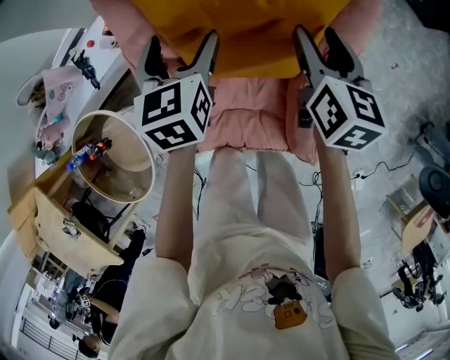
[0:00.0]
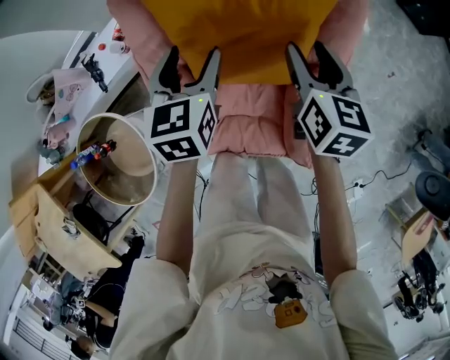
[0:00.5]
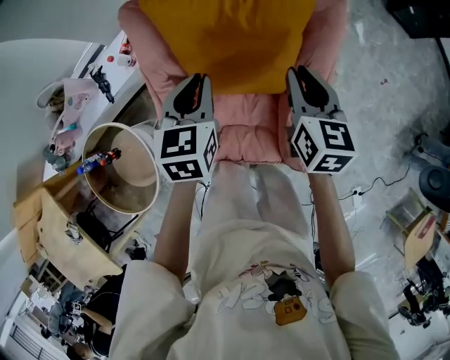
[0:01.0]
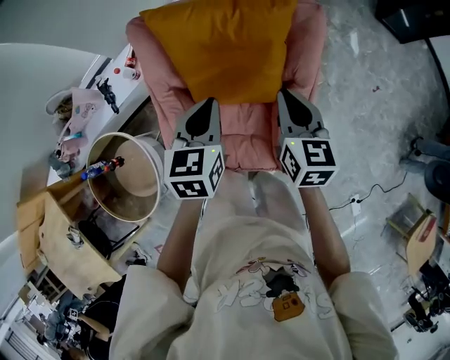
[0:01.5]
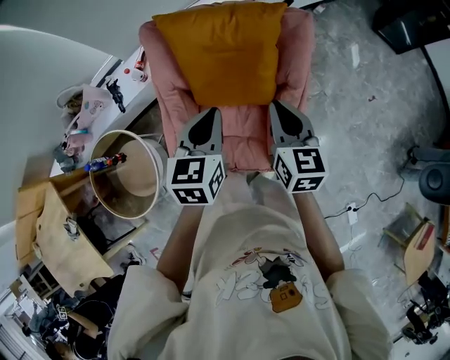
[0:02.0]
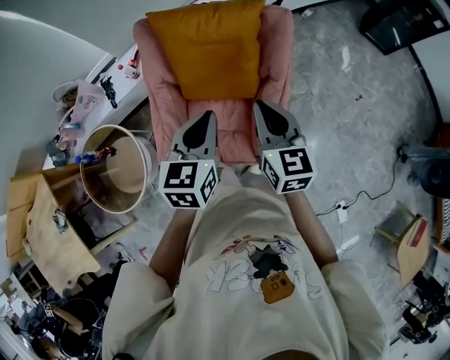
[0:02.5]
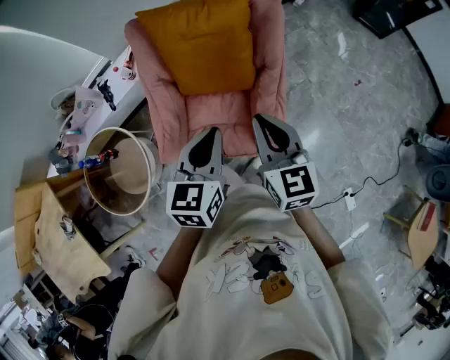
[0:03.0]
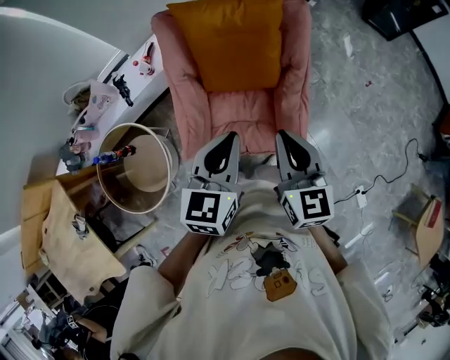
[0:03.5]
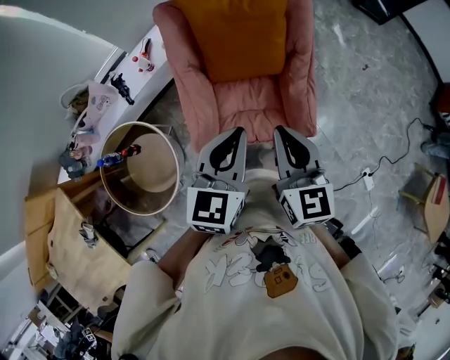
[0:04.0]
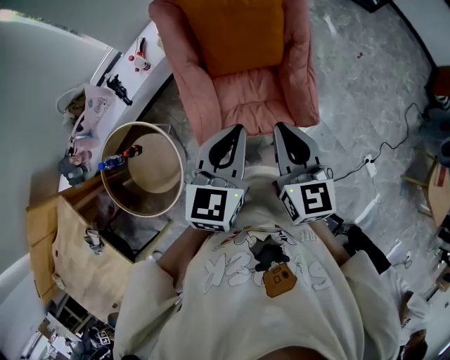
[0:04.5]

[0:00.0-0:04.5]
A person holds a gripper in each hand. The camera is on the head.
0.0 to 2.0 s: The right gripper heads backward and upward, covering approximately 25 cm, and closes its fingers; the left gripper heads backward, upward and to the right, covering some 30 cm, and closes up.
2.0 to 4.5 s: The grippers both shift backward and to the left by some 25 cm. The left gripper changes its angle by approximately 20 degrees.

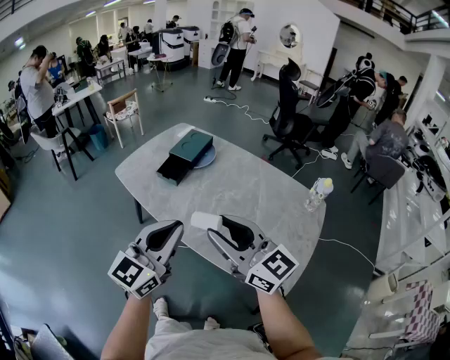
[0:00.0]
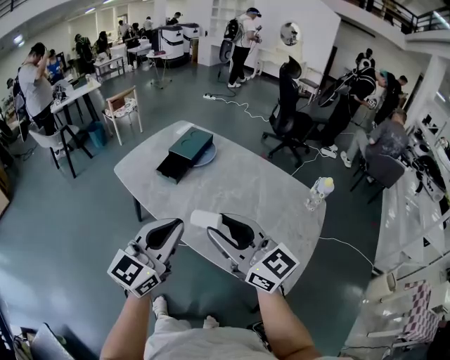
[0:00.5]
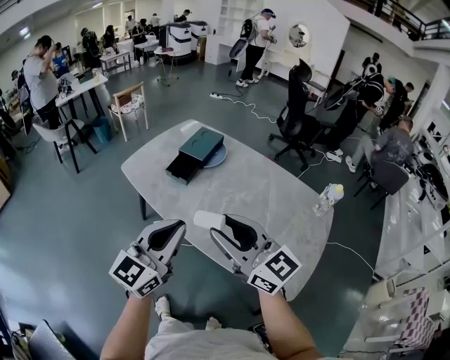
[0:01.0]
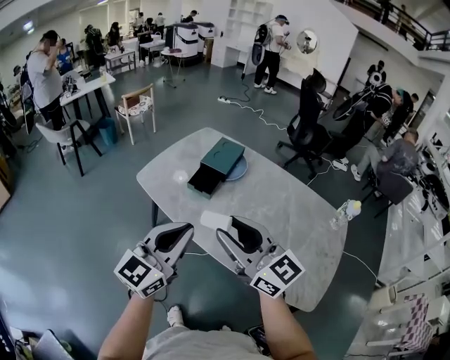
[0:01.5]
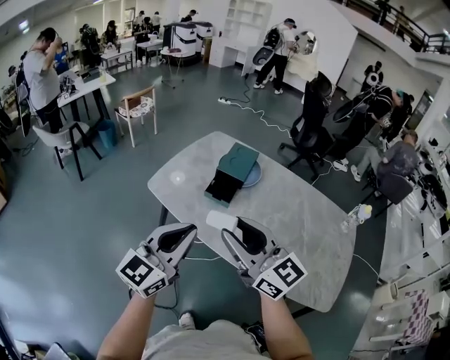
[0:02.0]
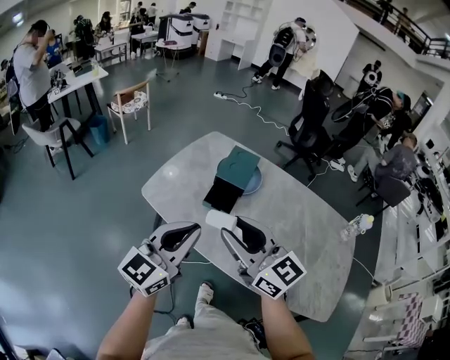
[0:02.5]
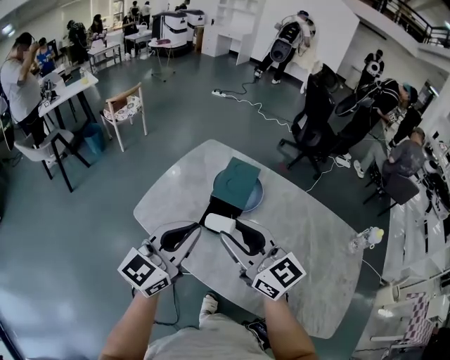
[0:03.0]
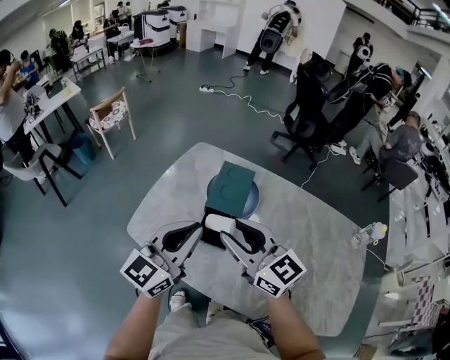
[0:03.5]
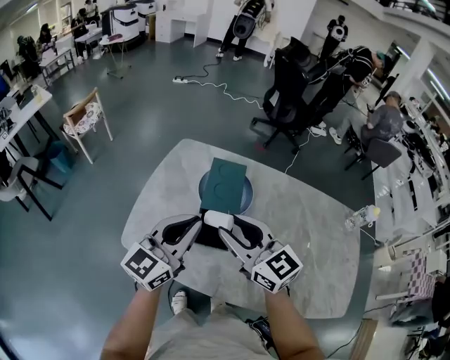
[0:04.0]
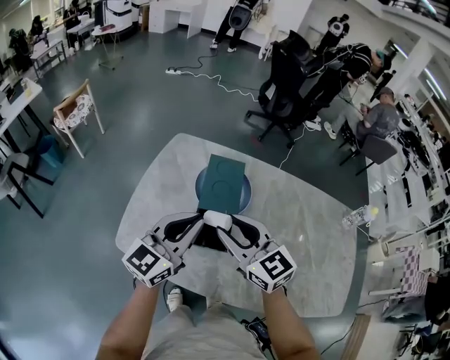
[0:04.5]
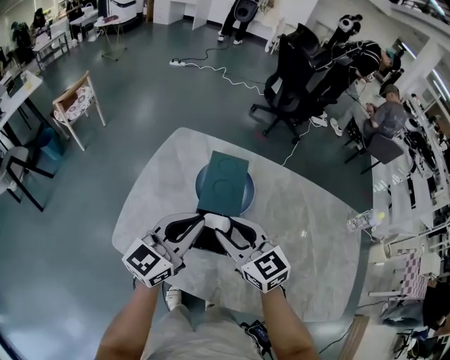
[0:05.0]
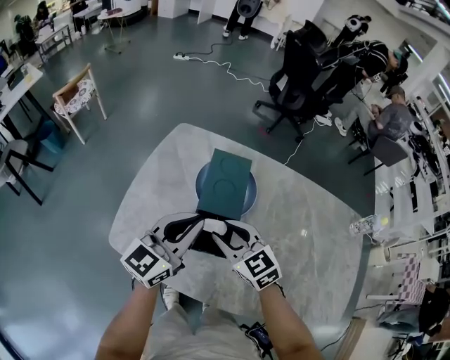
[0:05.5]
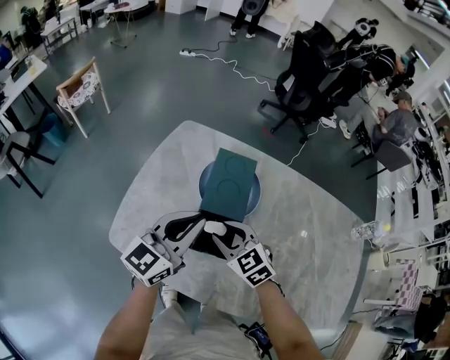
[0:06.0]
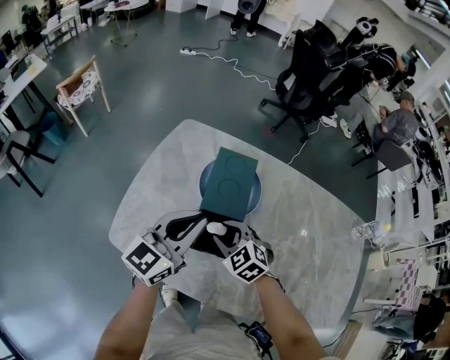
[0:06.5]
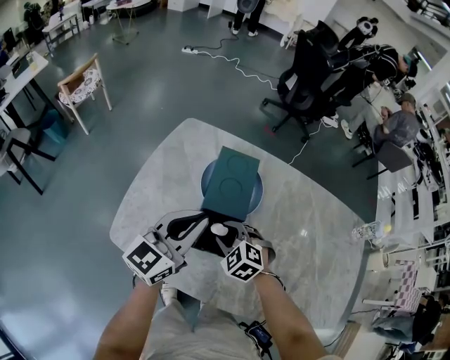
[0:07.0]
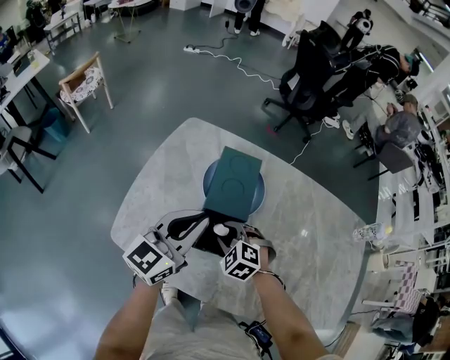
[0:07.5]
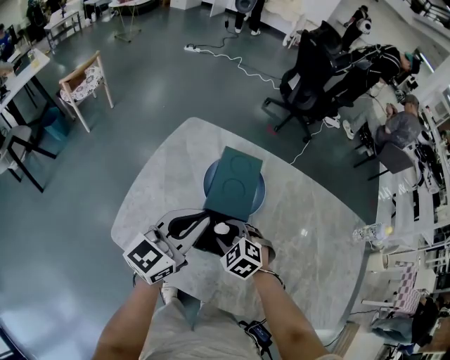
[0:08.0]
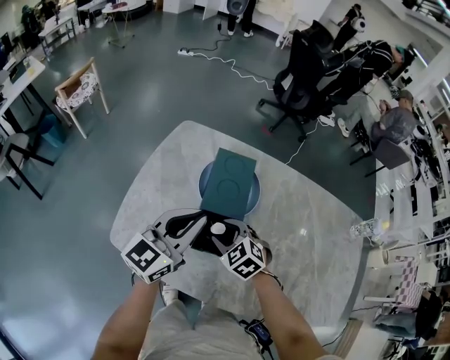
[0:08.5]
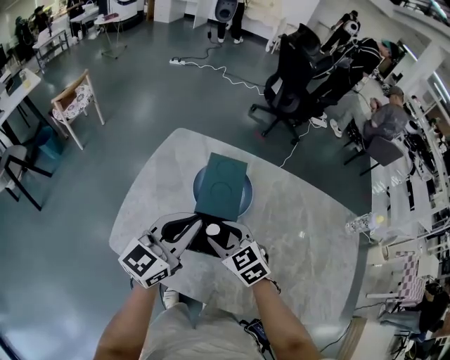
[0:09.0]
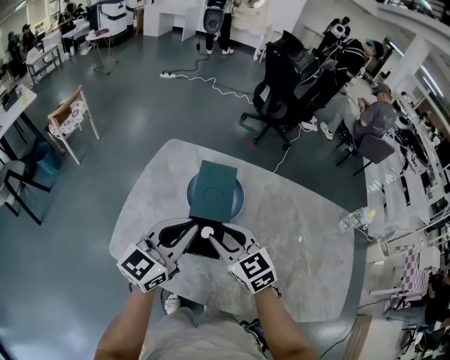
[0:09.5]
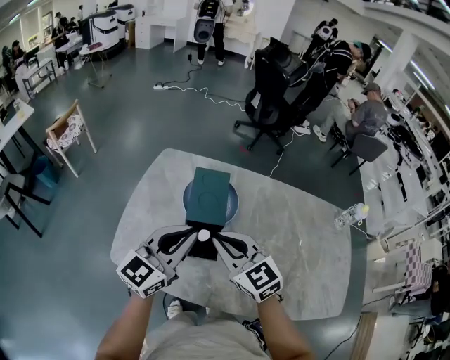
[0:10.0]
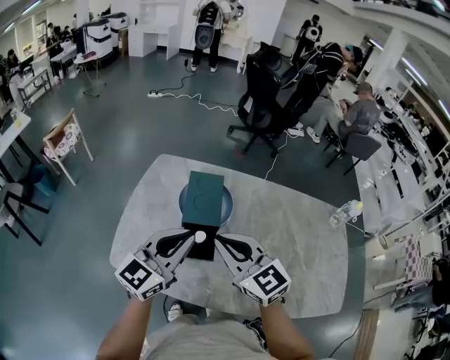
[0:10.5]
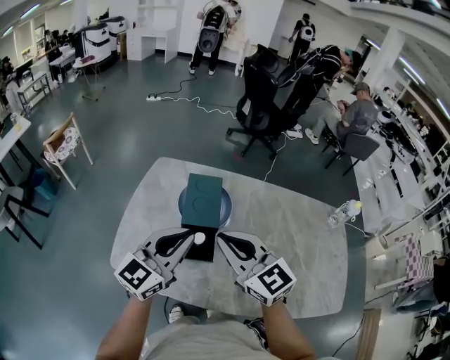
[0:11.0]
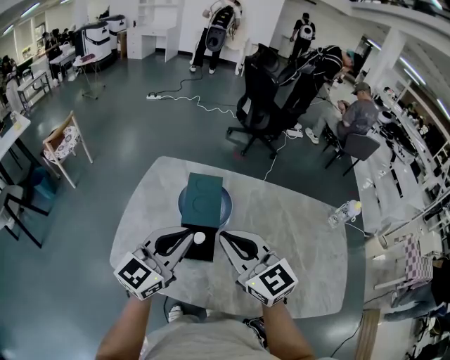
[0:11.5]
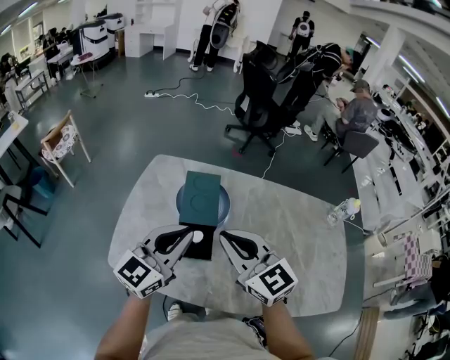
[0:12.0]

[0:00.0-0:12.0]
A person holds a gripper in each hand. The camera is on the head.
0.0 to 2.0 s: The two grippers go approximately 25 cm to the left and forward.
2.0 to 4.0 s: The two grippers go roughly 30 cm forward. The right gripper rotates some 20 degrees.
4.0 to 6.0 s: The right gripper travels downward by some 20 cm, and tilts its fingers approximately 30 degrees downward; the left gripper is displaced downward and forward by approximately 10 cm.
6.0 to 8.0 s: The right gripper shifts approximately 10 cm downward, and rotates roughly 30 degrees.
8.0 to 10.0 s: The right gripper heads upward, covering about 25 cm, angles its fingers upward, by roughly 40 degrees, and closes up. Meanwhile the left gripper travels upward and backward by approximately 10 cm.
10.0 to 12.0 s: The right gripper heads upward, covering roughly 5 cm.

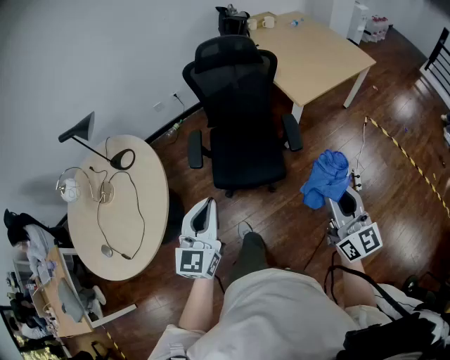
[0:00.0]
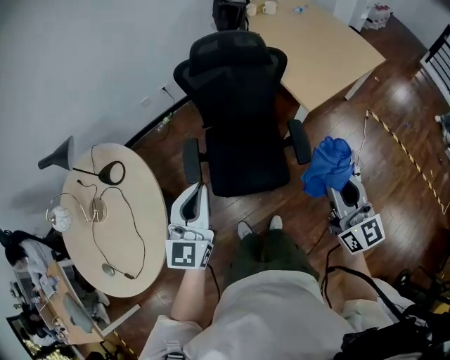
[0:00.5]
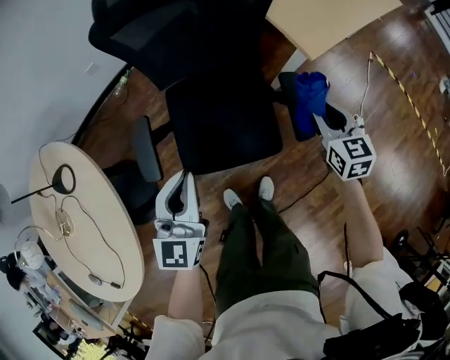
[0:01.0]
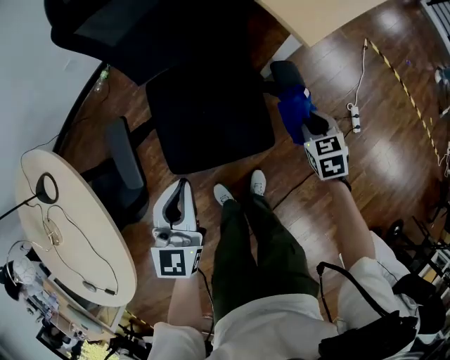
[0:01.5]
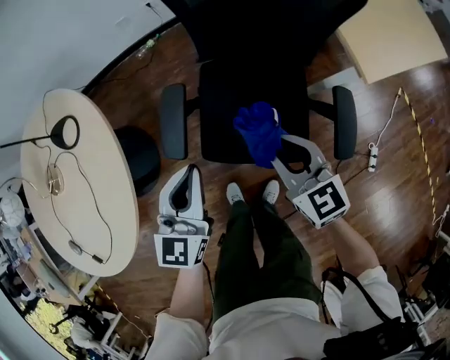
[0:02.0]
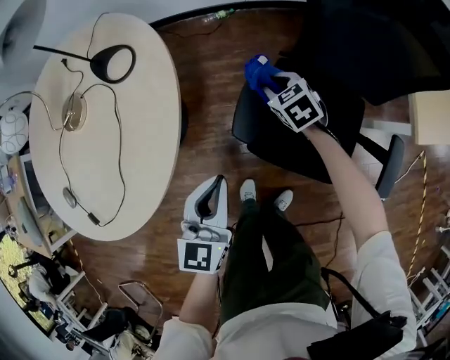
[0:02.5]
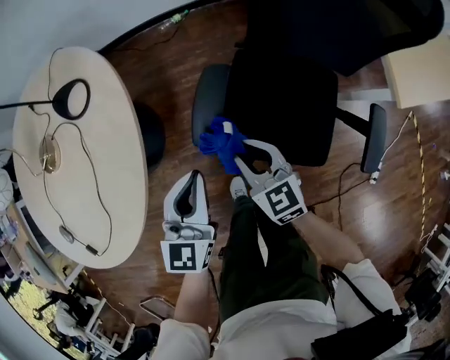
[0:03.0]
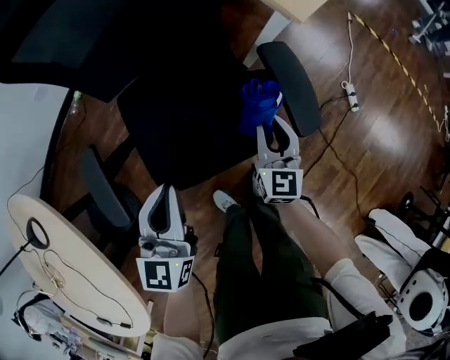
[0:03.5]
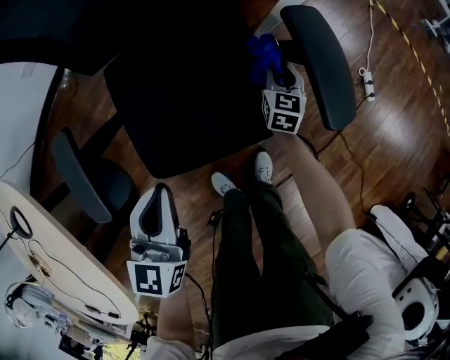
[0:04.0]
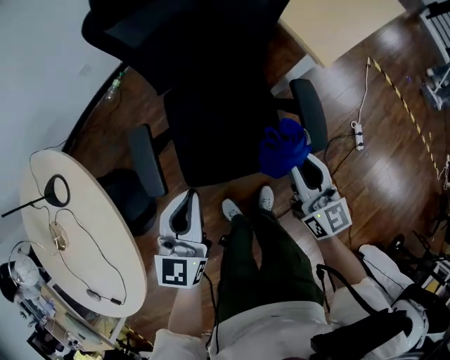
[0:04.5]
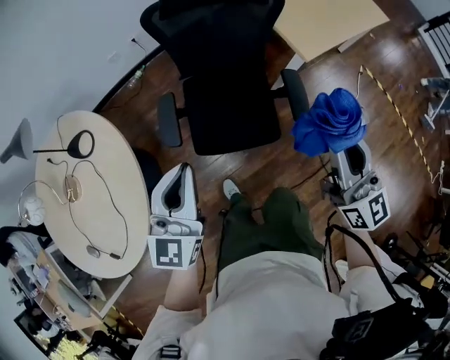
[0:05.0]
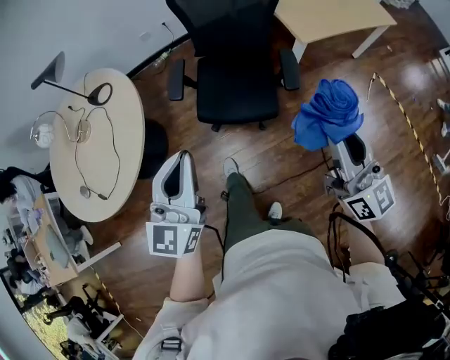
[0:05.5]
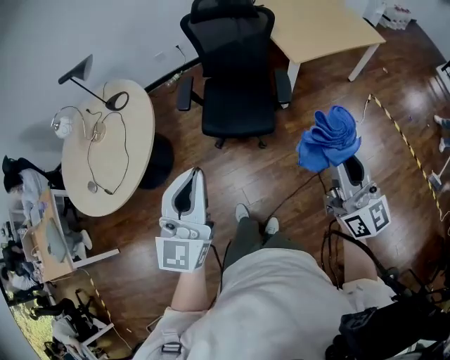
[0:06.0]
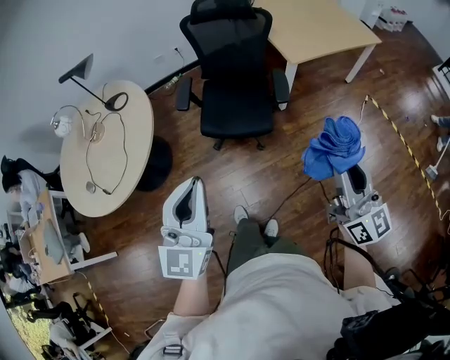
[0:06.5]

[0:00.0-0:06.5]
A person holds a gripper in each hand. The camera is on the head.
0.0 to 2.0 s: The left gripper shifts by some 35 cm. Meanwhile the right gripper moves approximately 50 cm, and swivels about 40 degrees.
2.0 to 4.5 s: The right gripper moves up and down over some 35 cm, changing direction 3 times, and rotates approximately 40 degrees, while the left gripper moves some 15 cm downward and comes back.
4.5 to 6.5 s: Both grippers are carried backward, approximately 40 cm. The grippers both shift upward by approximately 35 cm. The right gripper rotates about 20 degrees, while the left gripper rotates some 30 degrees.

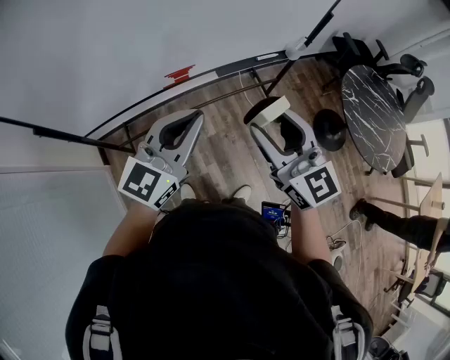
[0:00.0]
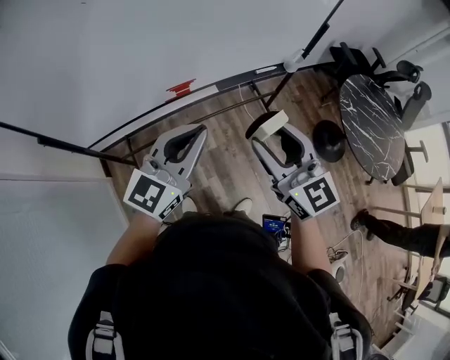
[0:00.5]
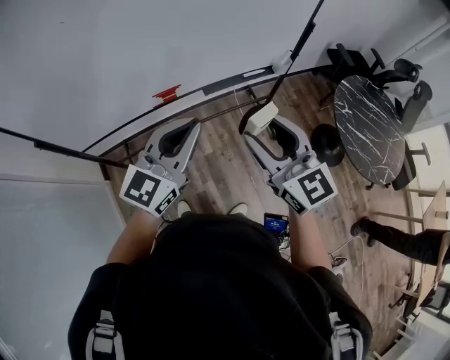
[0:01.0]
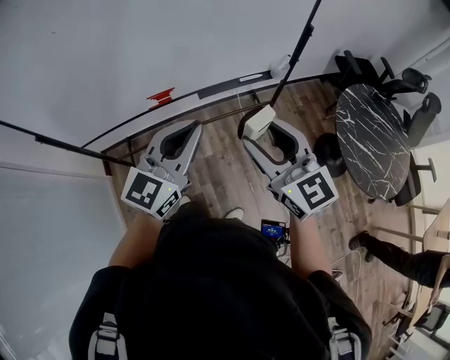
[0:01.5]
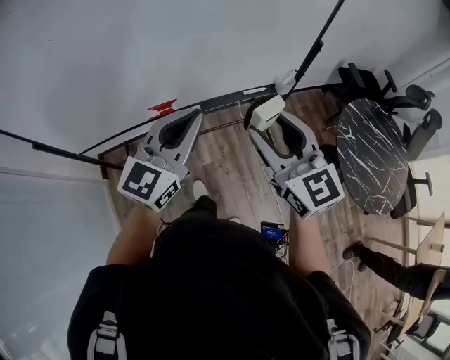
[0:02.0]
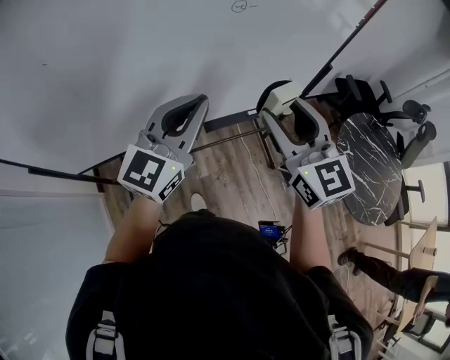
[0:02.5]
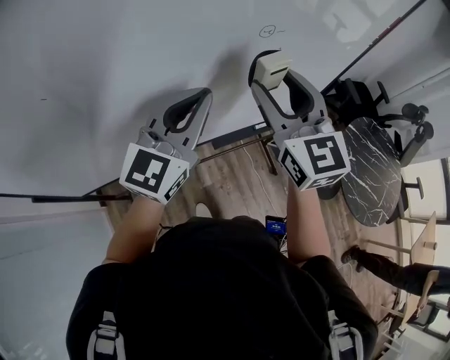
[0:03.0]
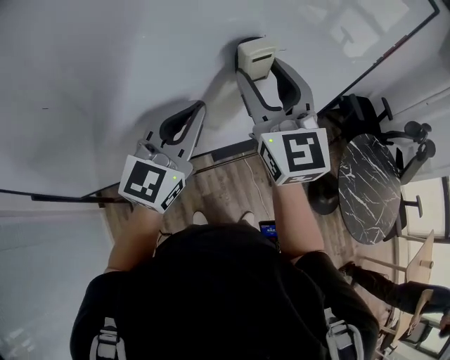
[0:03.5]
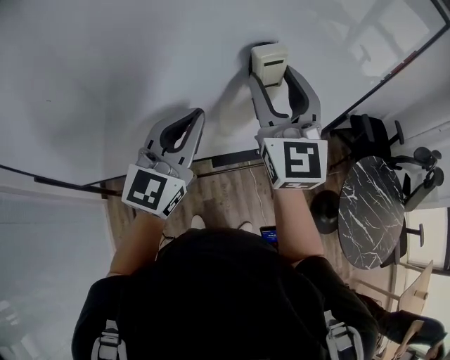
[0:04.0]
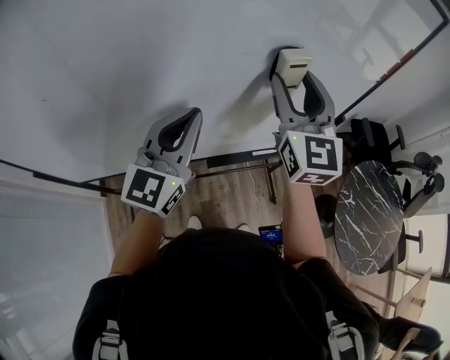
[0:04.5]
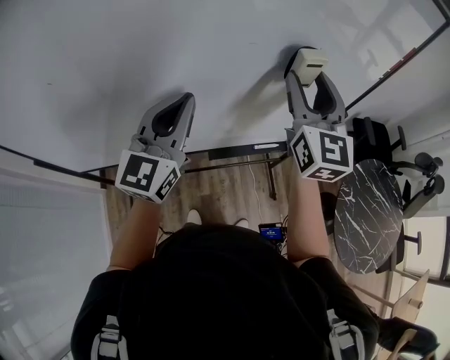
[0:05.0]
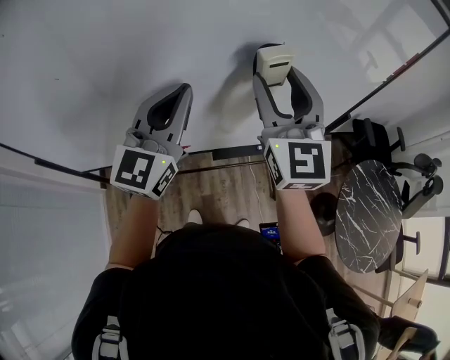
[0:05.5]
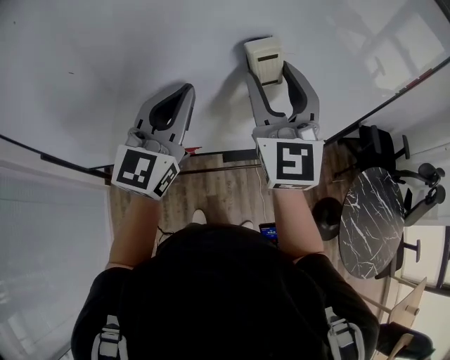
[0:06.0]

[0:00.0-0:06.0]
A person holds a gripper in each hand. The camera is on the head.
0.0 to 2.0 s: The grippers both shift to the right and forward by approximately 15 cm.
2.0 to 4.0 s: The right gripper moves forward and upward, roughly 30 cm, and rotates roughly 20 degrees. Meanwhile the left gripper goes roughly 20 cm forward and to the left.
4.0 to 6.0 s: The two grippers go approximately 5 cm to the left.
